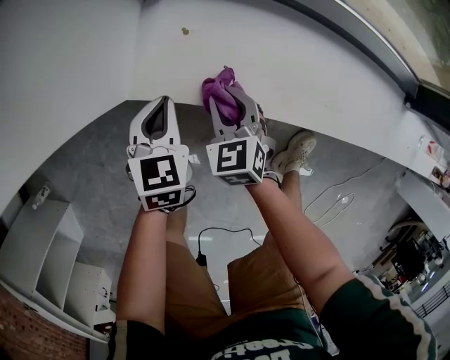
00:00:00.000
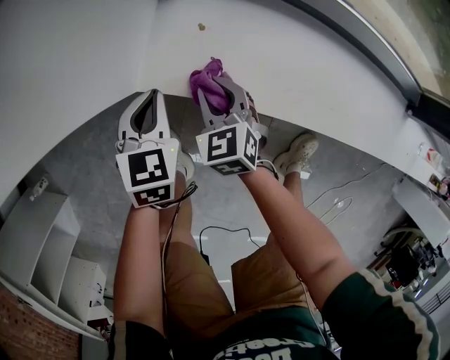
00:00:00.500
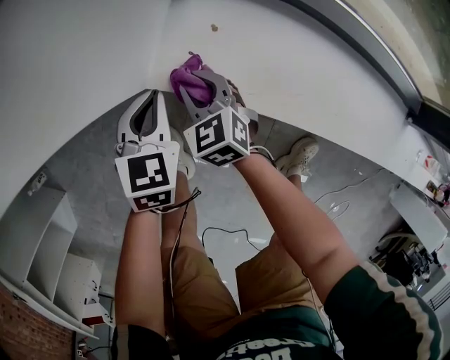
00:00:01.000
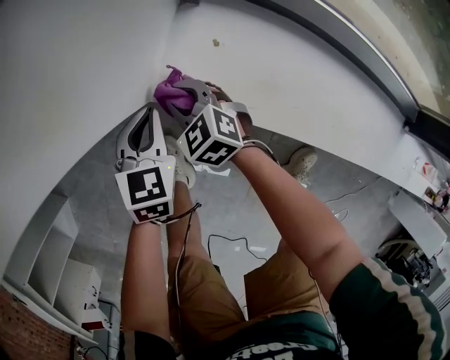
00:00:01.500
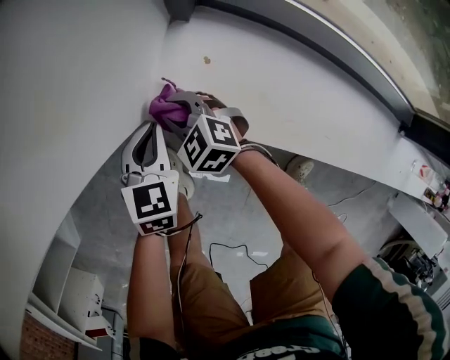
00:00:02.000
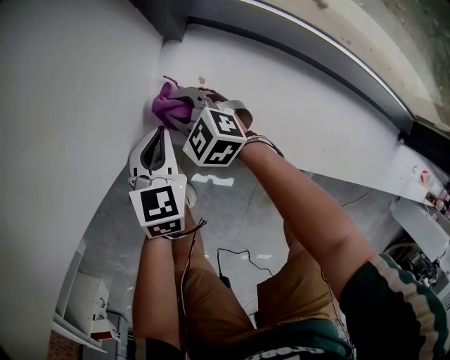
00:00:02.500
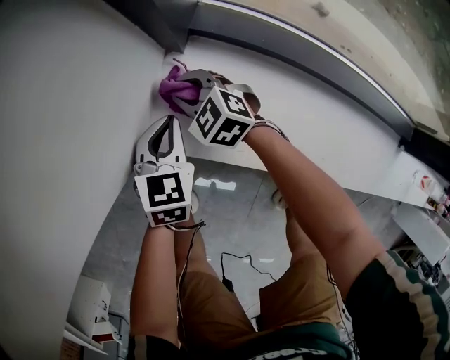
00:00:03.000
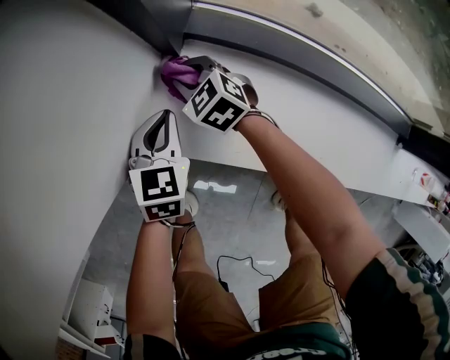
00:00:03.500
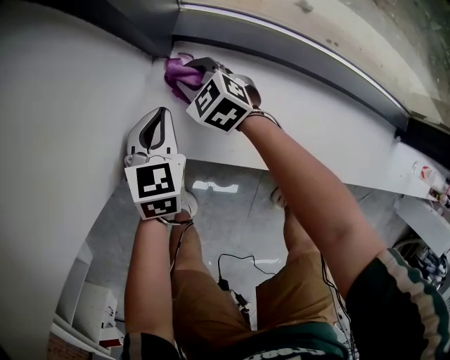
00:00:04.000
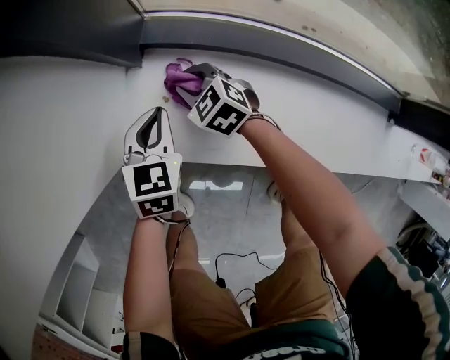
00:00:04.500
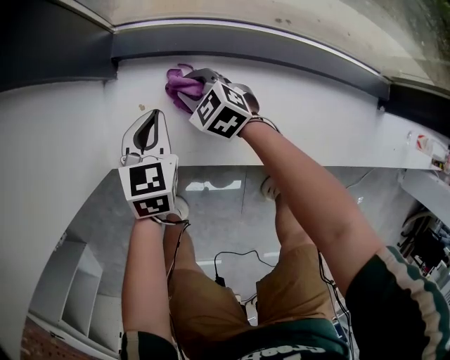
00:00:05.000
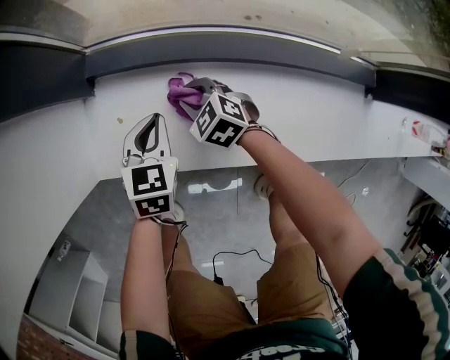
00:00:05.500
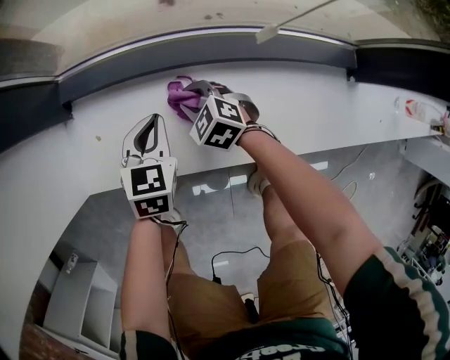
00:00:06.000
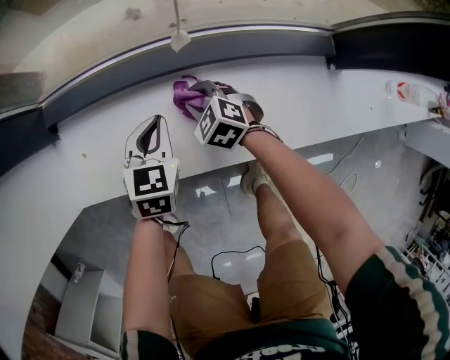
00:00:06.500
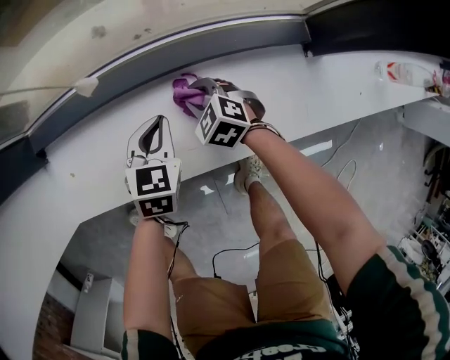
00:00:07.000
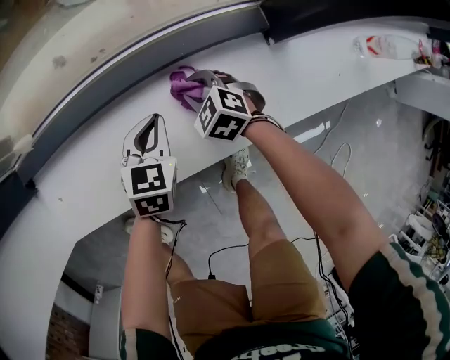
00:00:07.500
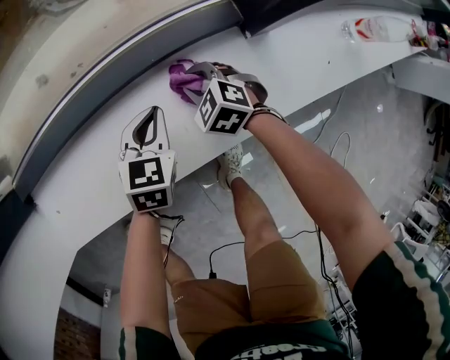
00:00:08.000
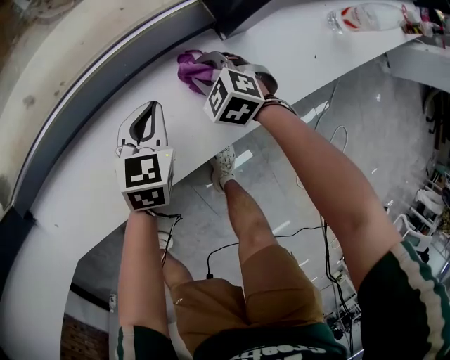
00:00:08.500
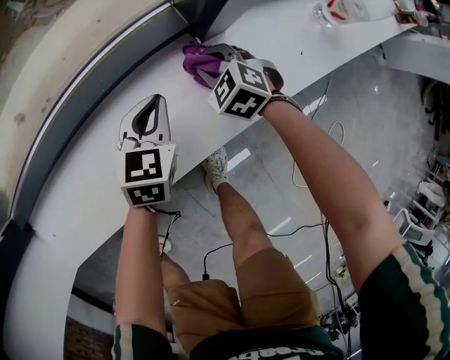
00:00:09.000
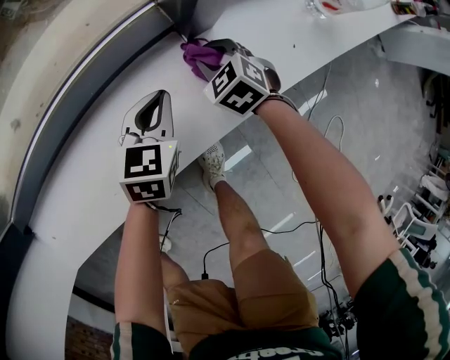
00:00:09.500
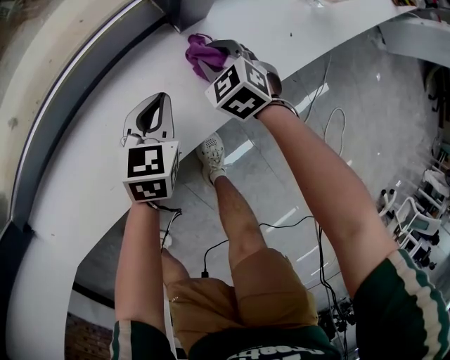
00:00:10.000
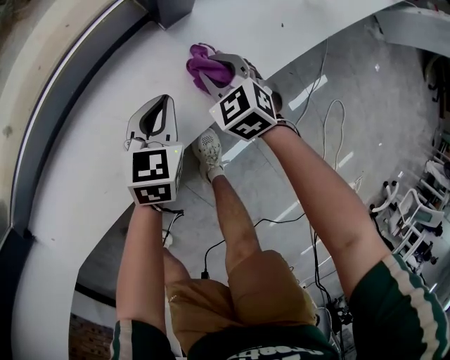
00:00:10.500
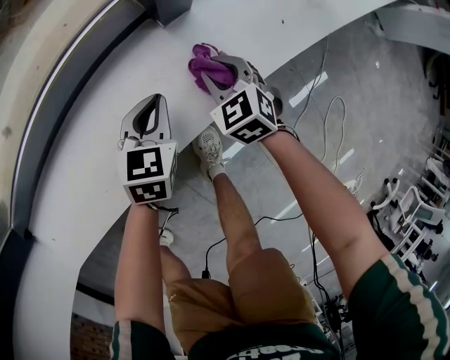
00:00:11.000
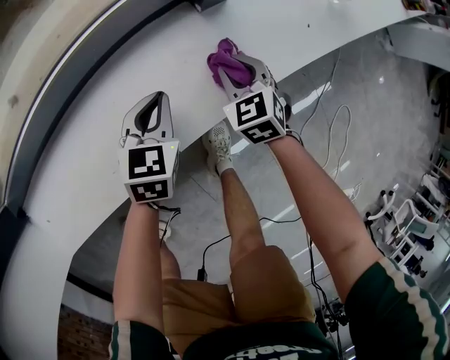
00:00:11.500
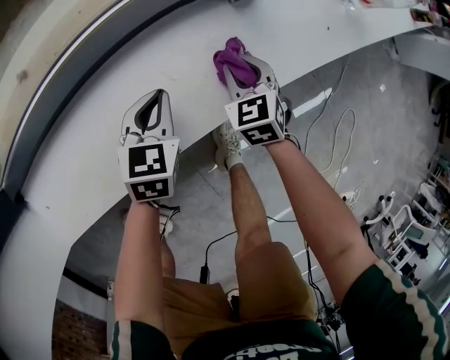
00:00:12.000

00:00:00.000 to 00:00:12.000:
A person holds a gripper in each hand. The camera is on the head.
00:00:00.000 to 00:00:02.000: The right gripper shifts by about 15 cm, and rotates about 40 degrees; the left gripper changes place by some 5 cm.
00:00:02.000 to 00:00:04.000: The two grippers go some 15 cm to the right and forward.
00:00:04.000 to 00:00:06.000: The right gripper shifts about 30 cm to the right and backward. The left gripper travels to the right by some 25 cm.
00:00:06.000 to 00:00:08.000: The left gripper shifts by some 30 cm, and swivels approximately 20 degrees; the right gripper shifts by roughly 35 cm.
00:00:08.000 to 00:00:10.000: The two grippers go about 15 cm to the right. The right gripper rotates roughly 20 degrees.
00:00:10.000 to 00:00:12.000: The right gripper goes roughly 10 cm backward. The left gripper goes approximately 10 cm to the left and backward.

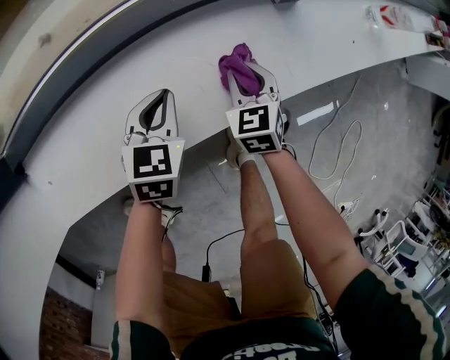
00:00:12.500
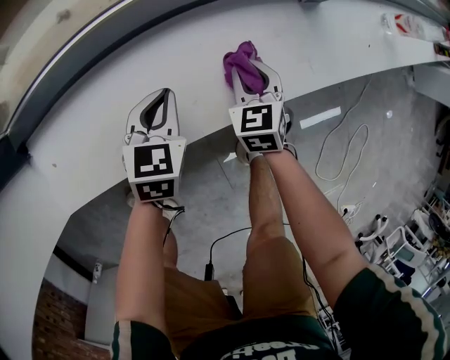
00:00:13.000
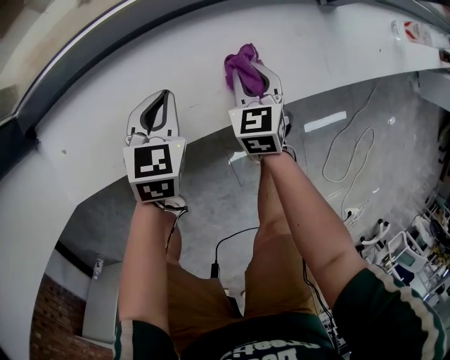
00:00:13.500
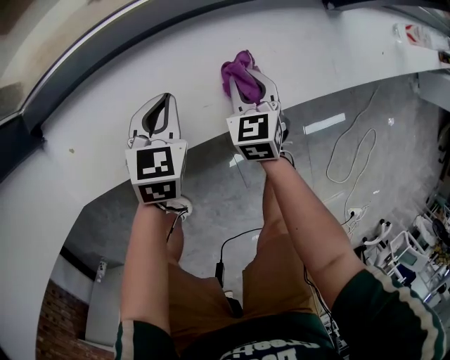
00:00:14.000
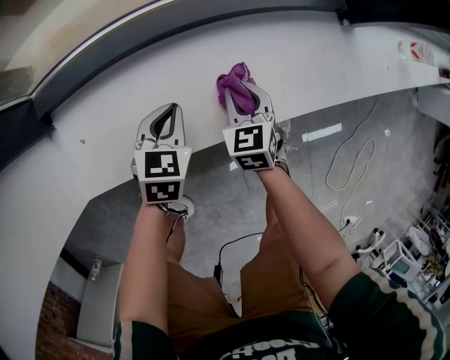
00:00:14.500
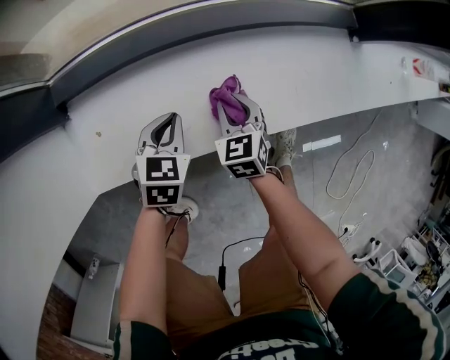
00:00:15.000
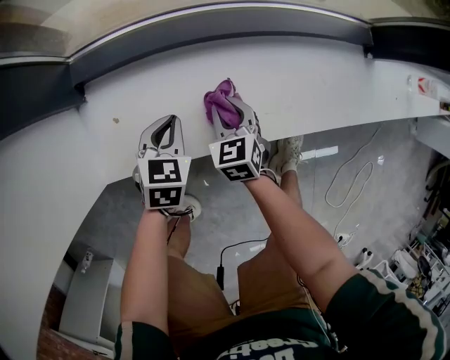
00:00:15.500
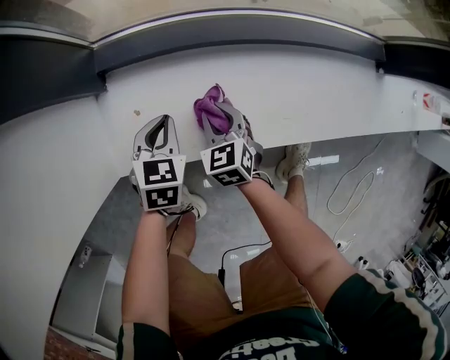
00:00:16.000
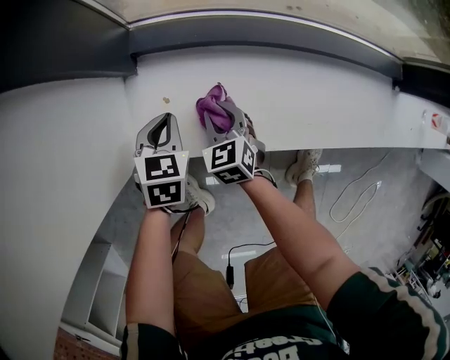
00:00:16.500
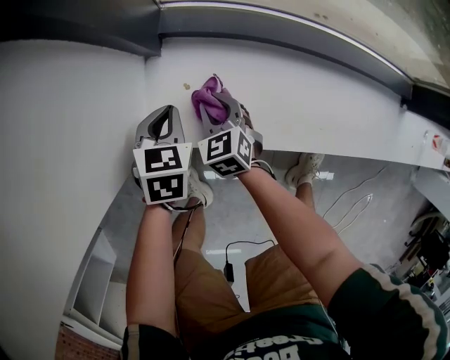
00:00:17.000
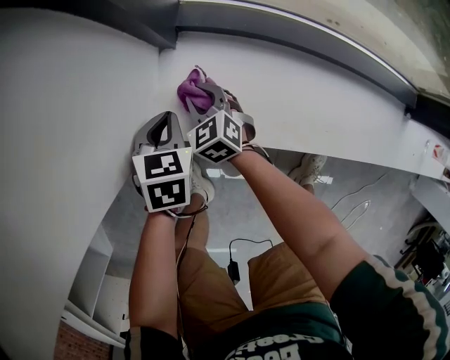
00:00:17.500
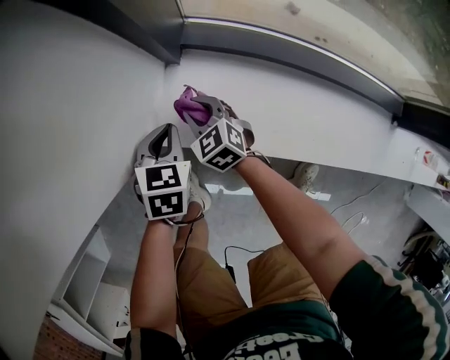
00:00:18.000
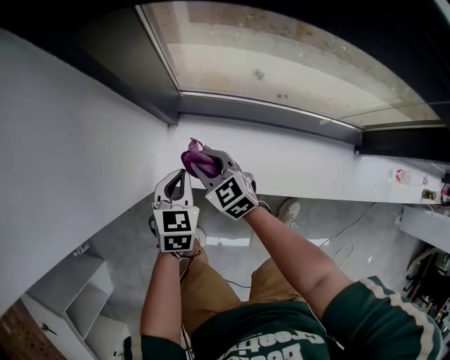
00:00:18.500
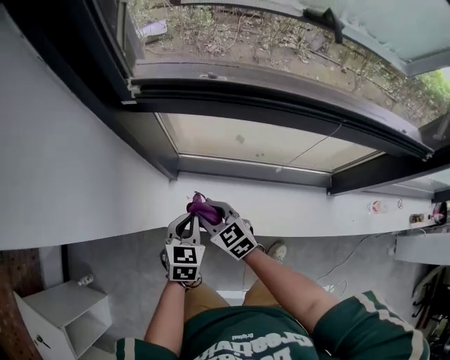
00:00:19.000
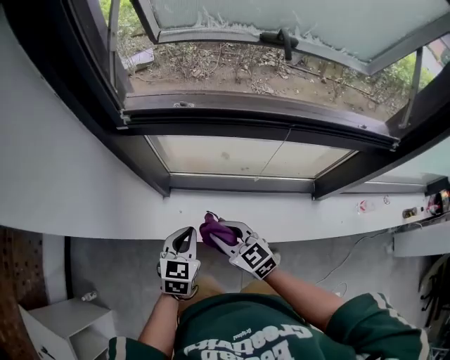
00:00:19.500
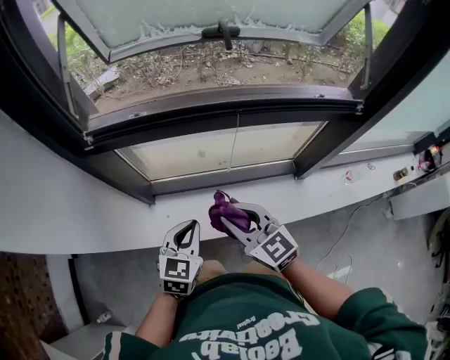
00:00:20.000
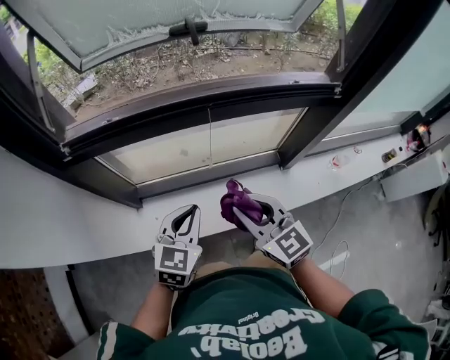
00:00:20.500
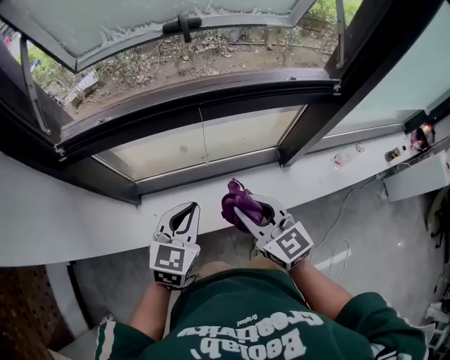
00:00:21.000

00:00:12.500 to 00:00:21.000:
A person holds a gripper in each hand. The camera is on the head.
00:00:12.500 to 00:00:14.500: The right gripper moves to the left, approximately 20 cm. The left gripper goes some 20 cm to the left and backward.
00:00:14.500 to 00:00:16.500: The left gripper shifts by roughly 25 cm, and changes its angle by about 20 degrees, while the right gripper moves about 30 cm, and swivels roughly 20 degrees.
00:00:16.500 to 00:00:19.000: Both grippers move upward, approximately 35 cm. The right gripper changes its angle by some 30 degrees.
00:00:19.000 to 00:00:21.000: The left gripper changes place by about 30 cm, and changes its angle by approximately 30 degrees, while the right gripper changes place by roughly 40 cm, and rotates some 30 degrees.

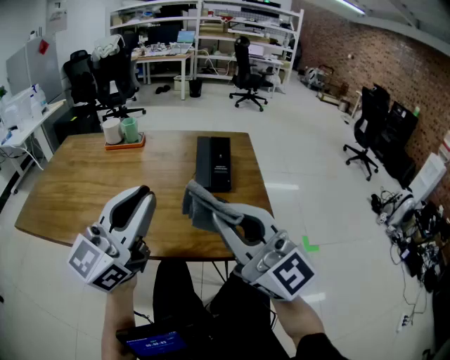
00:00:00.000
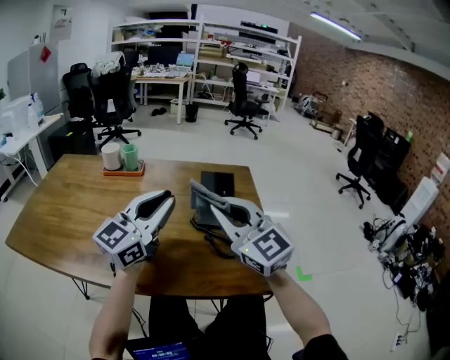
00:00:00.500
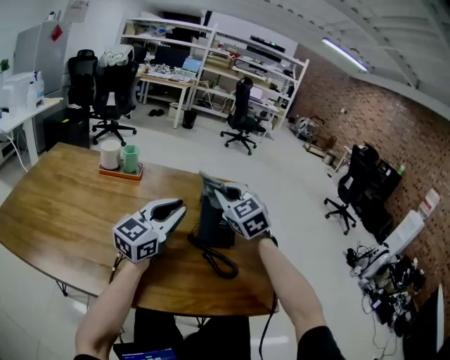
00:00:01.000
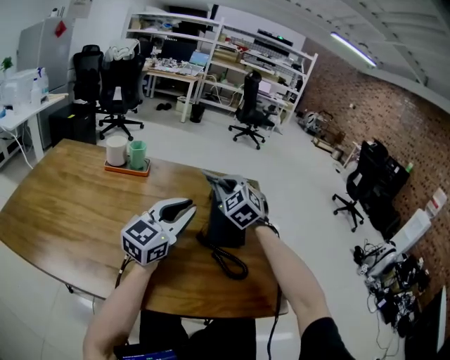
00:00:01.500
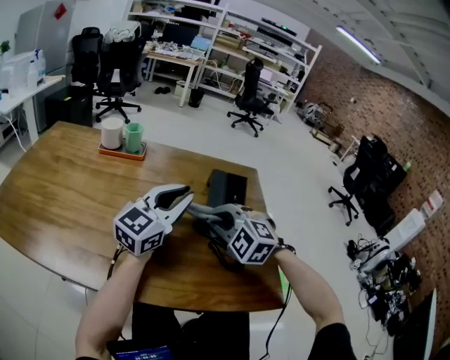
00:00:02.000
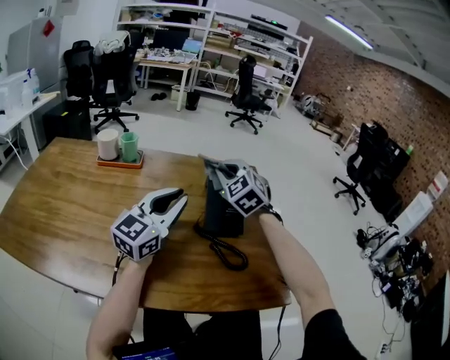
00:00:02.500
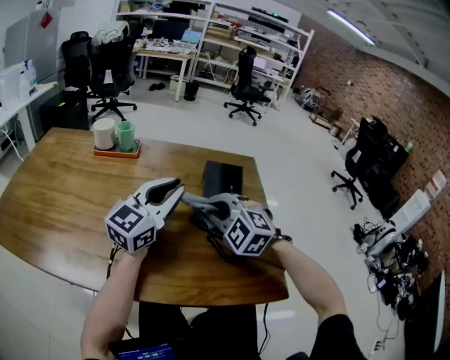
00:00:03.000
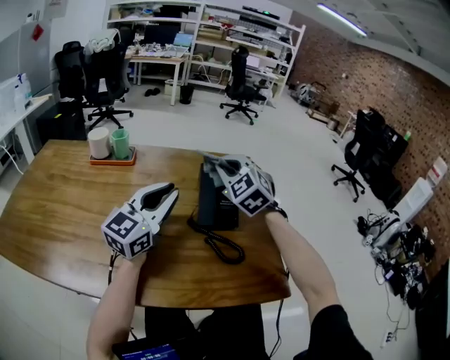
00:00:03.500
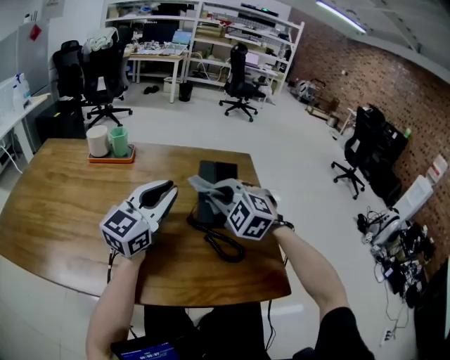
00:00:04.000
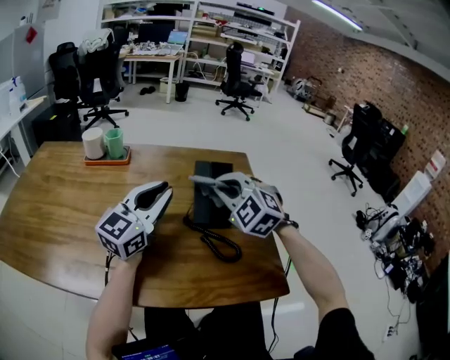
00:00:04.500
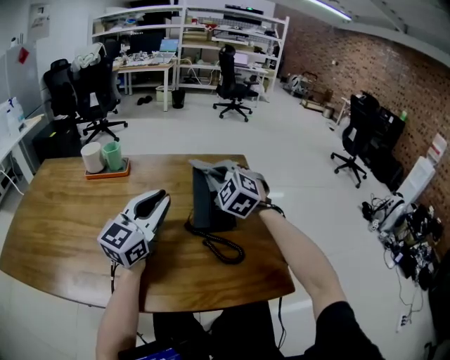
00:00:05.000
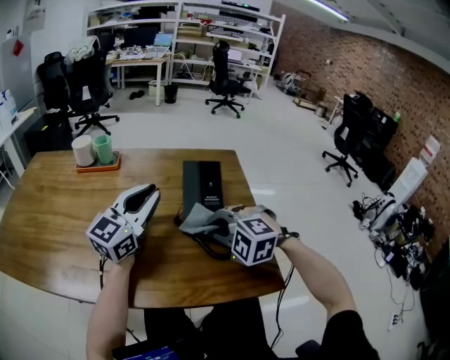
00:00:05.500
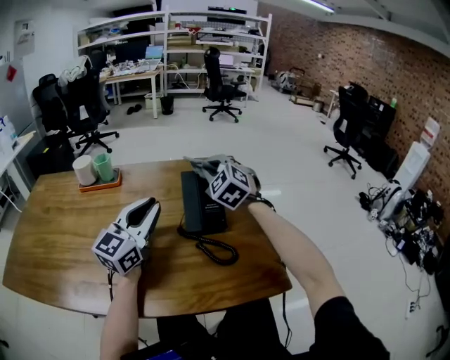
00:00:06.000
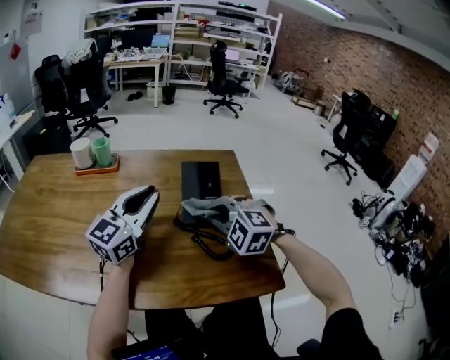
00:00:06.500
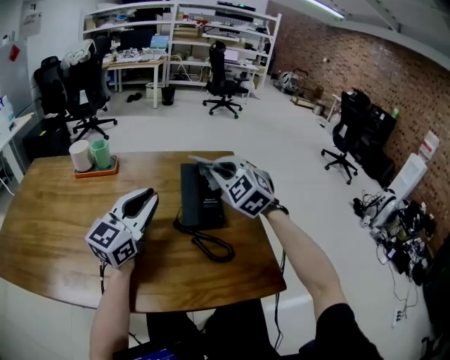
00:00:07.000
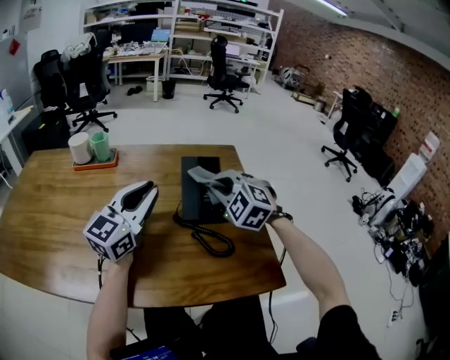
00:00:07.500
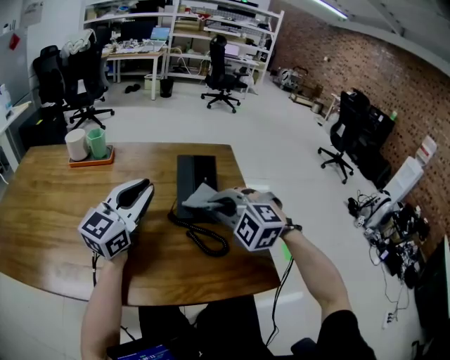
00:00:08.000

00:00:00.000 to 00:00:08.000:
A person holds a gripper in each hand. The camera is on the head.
00:00:00.000 to 00:00:02.000: Both grippers move forward and downward, some 30 cm. The right gripper tilts its fingers some 60 degrees downward.
00:00:02.000 to 00:00:04.000: The right gripper goes forward and backward, roughly 15 cm each way, reversing 3 times.
00:00:04.000 to 00:00:06.000: The right gripper goes forward and backward, roughly 20 cm each way, reversing 2 times, and rotates some 20 degrees.
00:00:06.000 to 00:00:08.000: The right gripper moves forward and backward over roughly 15 cm, changing direction 2 times, and rotates roughly 30 degrees.
